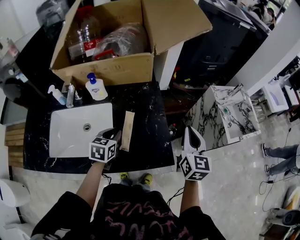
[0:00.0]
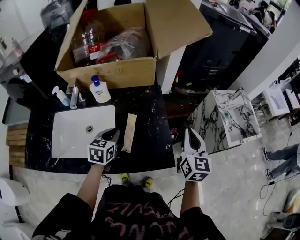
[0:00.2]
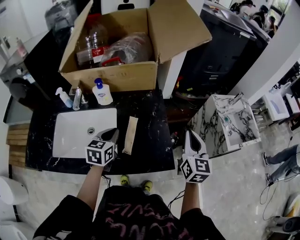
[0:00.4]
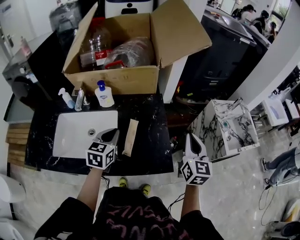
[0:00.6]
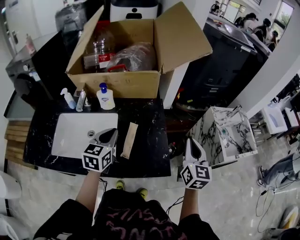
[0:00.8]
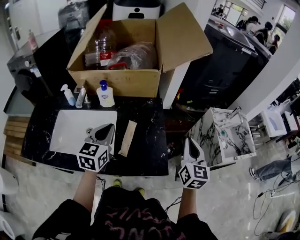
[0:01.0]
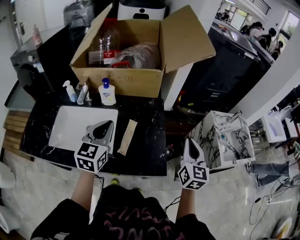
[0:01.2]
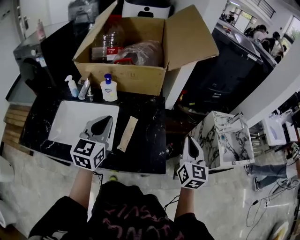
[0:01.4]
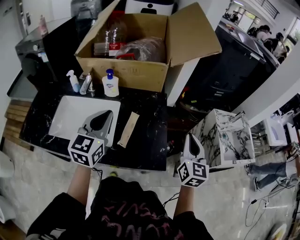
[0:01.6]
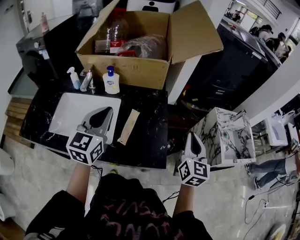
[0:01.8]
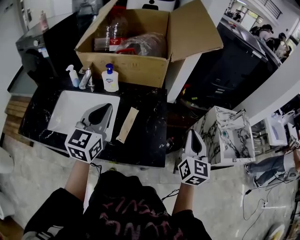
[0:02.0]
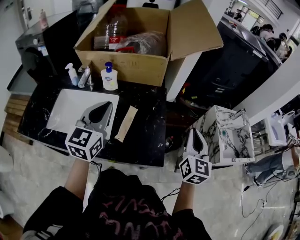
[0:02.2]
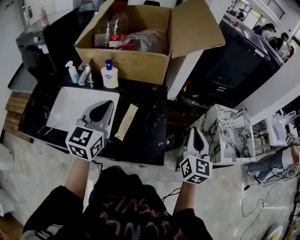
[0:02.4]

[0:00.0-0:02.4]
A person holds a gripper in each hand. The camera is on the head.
0:00.0 to 0:01.2: The left gripper moves upward, some 15 cm, and rotates some 30 degrees.
0:01.2 to 0:02.4: The grippers make only small movements.

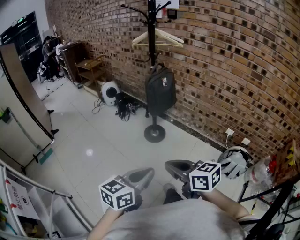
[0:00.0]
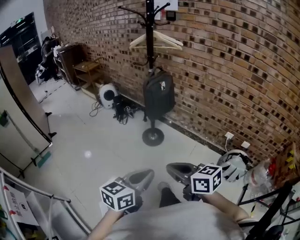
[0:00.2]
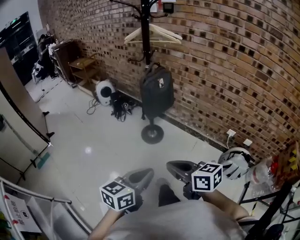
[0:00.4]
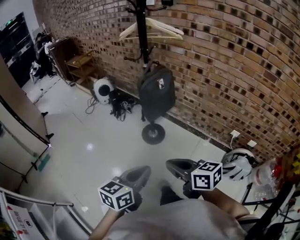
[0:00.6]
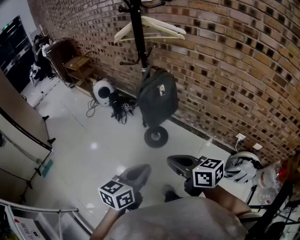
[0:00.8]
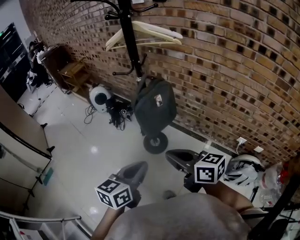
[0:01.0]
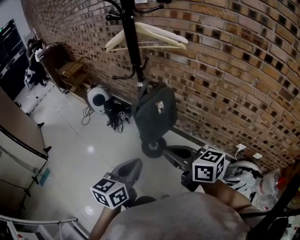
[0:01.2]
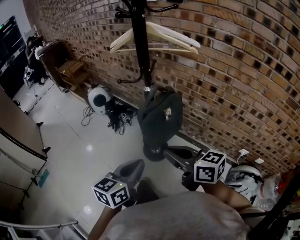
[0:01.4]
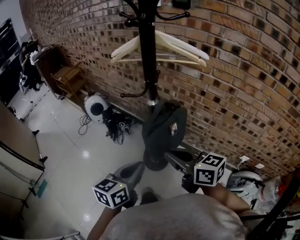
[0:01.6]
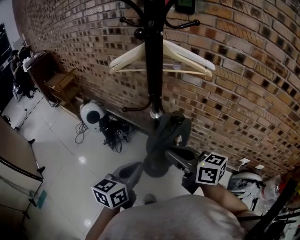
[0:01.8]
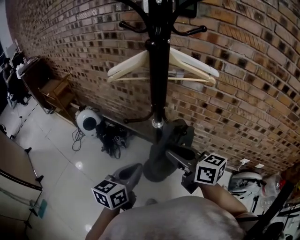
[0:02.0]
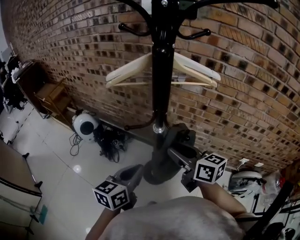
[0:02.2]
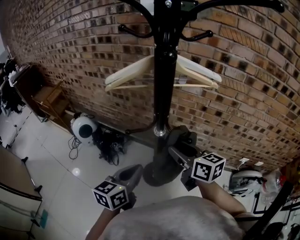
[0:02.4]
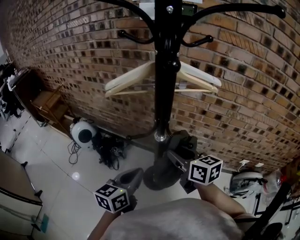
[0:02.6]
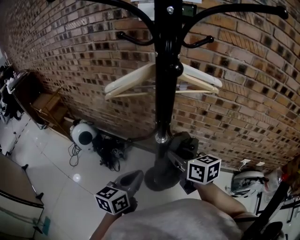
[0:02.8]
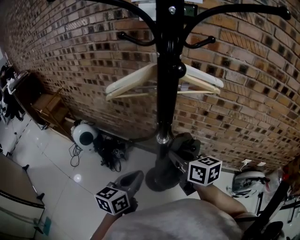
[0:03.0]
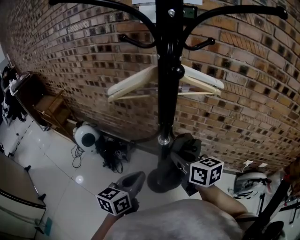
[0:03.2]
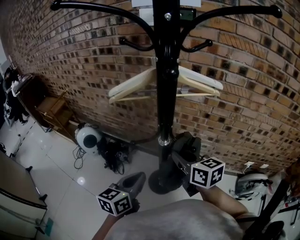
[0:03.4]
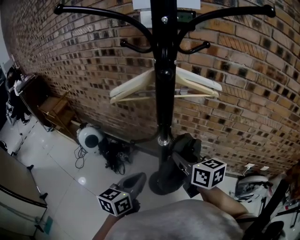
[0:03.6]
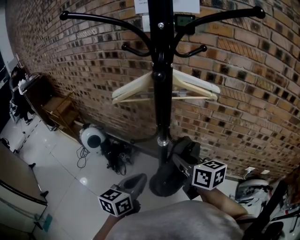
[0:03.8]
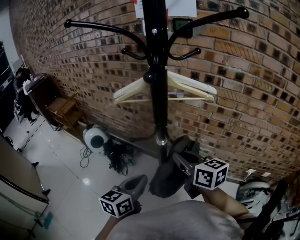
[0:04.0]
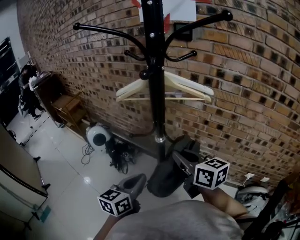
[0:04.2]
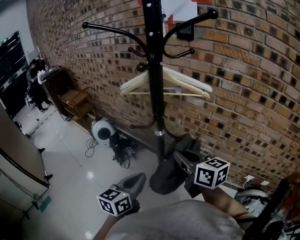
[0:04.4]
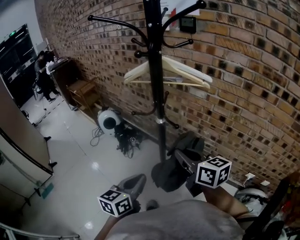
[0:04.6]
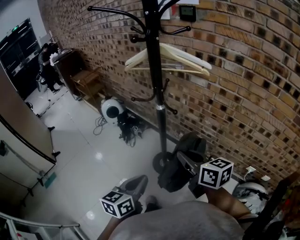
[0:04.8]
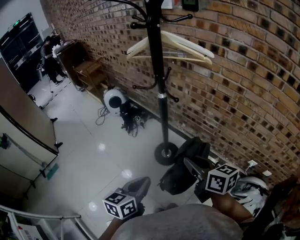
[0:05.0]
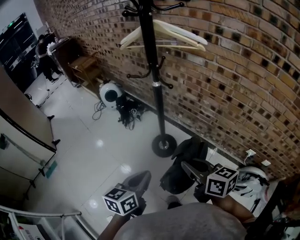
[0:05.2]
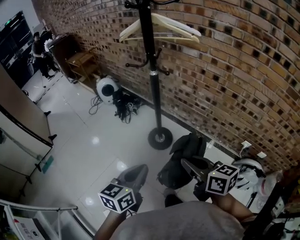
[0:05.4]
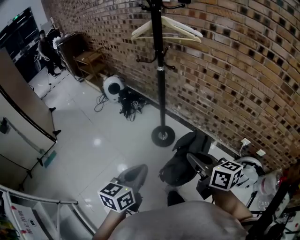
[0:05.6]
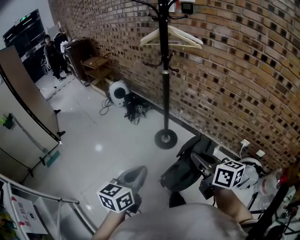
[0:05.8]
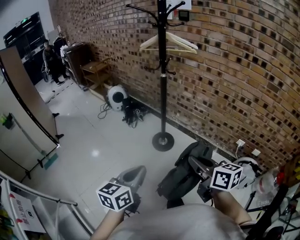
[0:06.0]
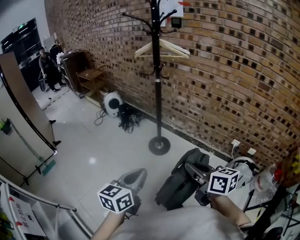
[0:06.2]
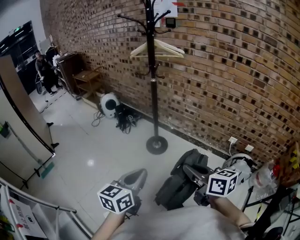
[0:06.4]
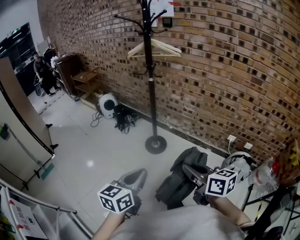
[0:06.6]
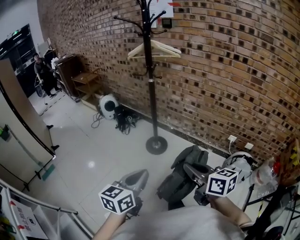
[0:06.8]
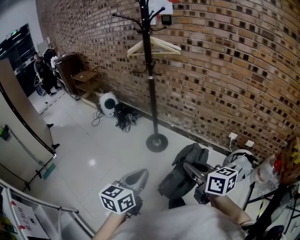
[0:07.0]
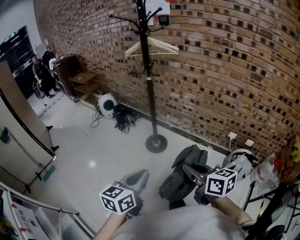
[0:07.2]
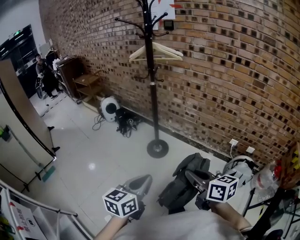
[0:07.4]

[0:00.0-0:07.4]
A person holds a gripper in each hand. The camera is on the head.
0:00.0 to 0:01.4: The pair of grippers is taken forward, about 40 cm.
0:01.4 to 0:03.0: The right gripper is displaced forward by approximately 25 cm, rotates some 30 degrees, and opens, then closes once more. Meanwhile the left gripper travels forward and to the left by about 25 cm.
0:03.0 to 0:04.4: The left gripper moves backward and to the right, approximately 10 cm. Meanwhile the right gripper goes approximately 15 cm backward, upward and to the right.
0:04.4 to 0:06.0: Both grippers are carried backward, approximately 40 cm.
0:06.0 to 0:07.4: The right gripper shifts roughly 5 cm backward. The left gripper changes place by approximately 5 cm.

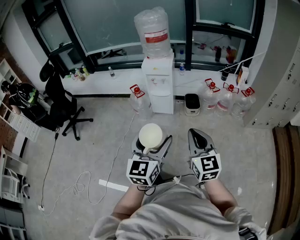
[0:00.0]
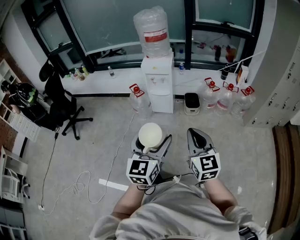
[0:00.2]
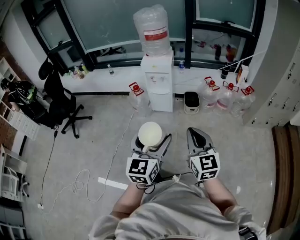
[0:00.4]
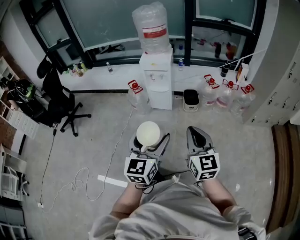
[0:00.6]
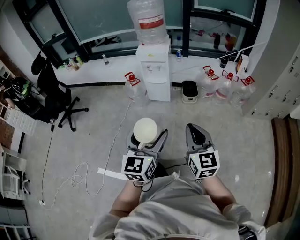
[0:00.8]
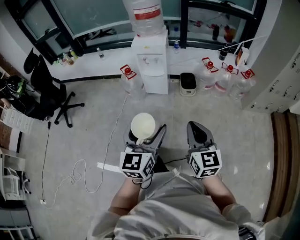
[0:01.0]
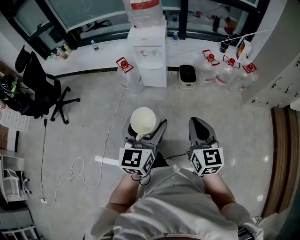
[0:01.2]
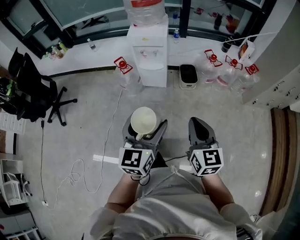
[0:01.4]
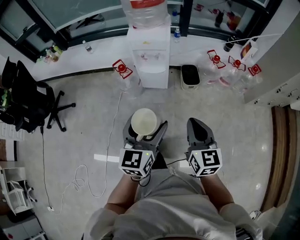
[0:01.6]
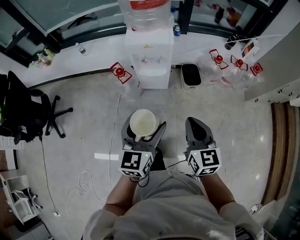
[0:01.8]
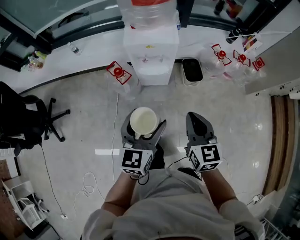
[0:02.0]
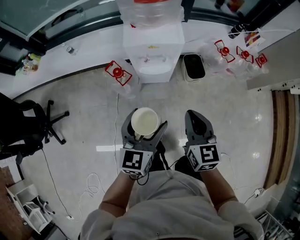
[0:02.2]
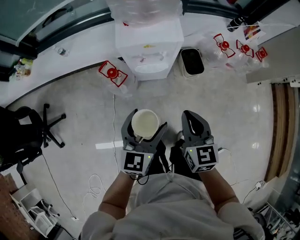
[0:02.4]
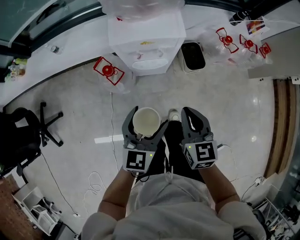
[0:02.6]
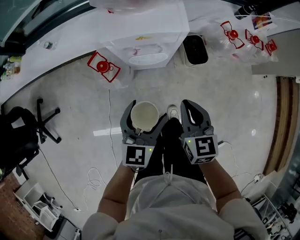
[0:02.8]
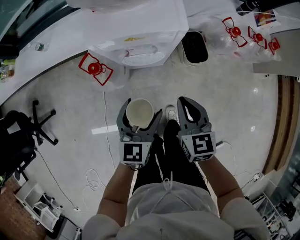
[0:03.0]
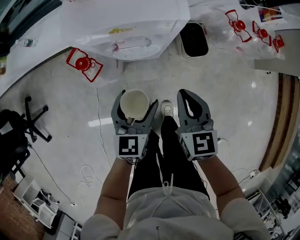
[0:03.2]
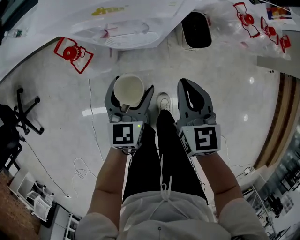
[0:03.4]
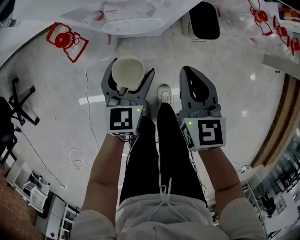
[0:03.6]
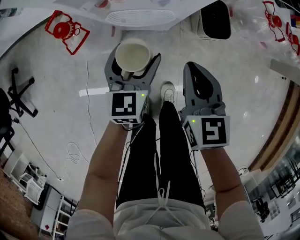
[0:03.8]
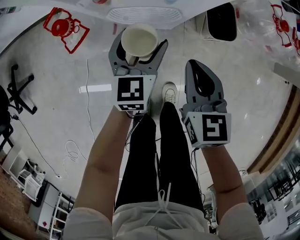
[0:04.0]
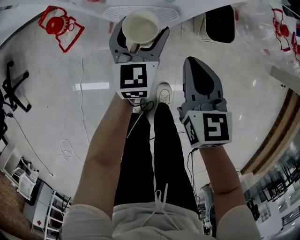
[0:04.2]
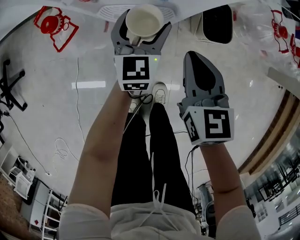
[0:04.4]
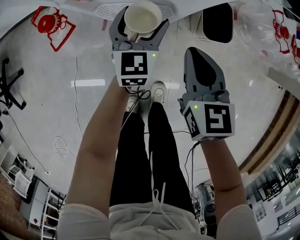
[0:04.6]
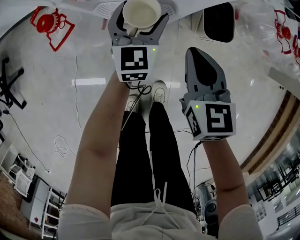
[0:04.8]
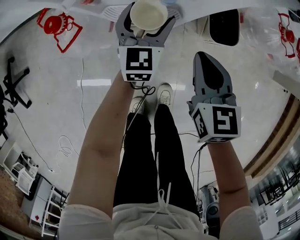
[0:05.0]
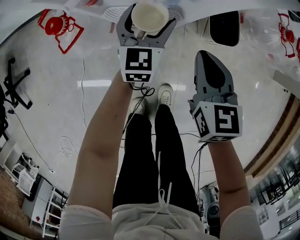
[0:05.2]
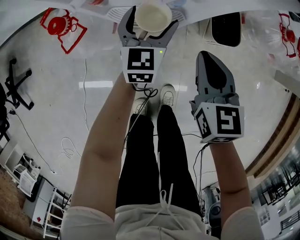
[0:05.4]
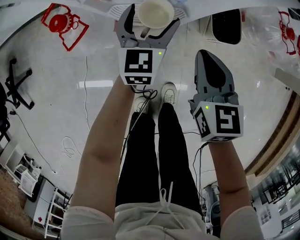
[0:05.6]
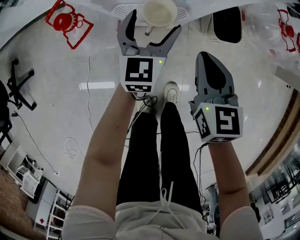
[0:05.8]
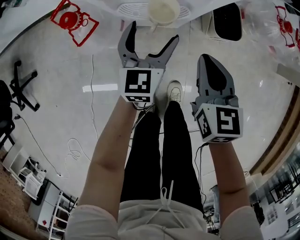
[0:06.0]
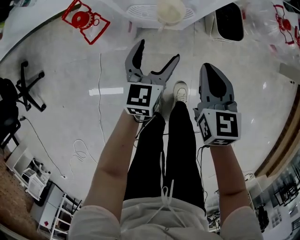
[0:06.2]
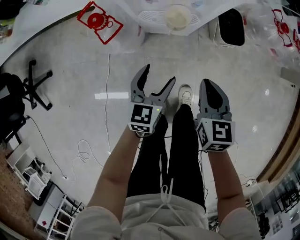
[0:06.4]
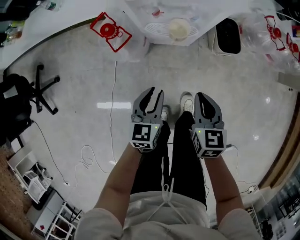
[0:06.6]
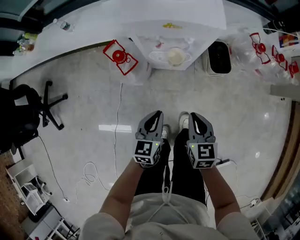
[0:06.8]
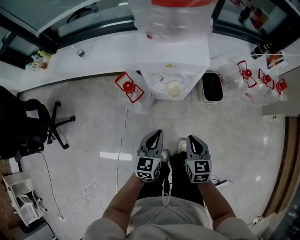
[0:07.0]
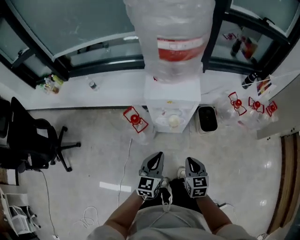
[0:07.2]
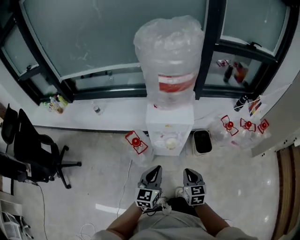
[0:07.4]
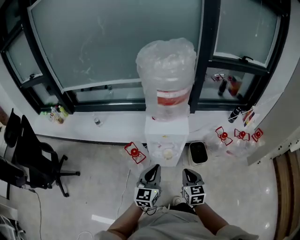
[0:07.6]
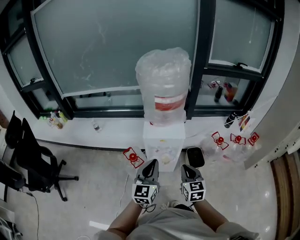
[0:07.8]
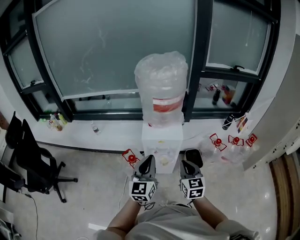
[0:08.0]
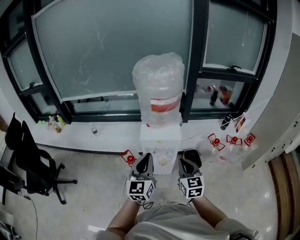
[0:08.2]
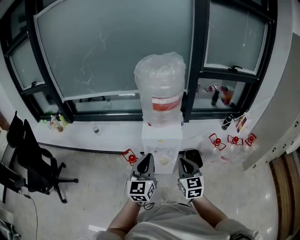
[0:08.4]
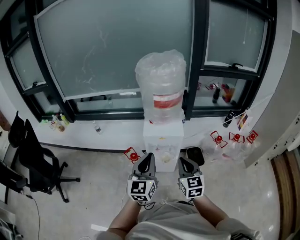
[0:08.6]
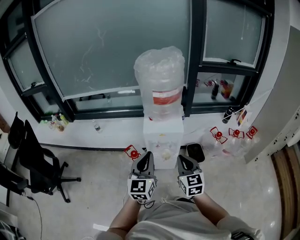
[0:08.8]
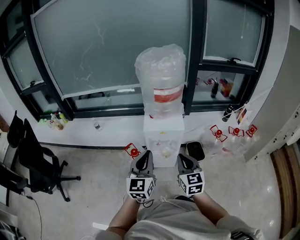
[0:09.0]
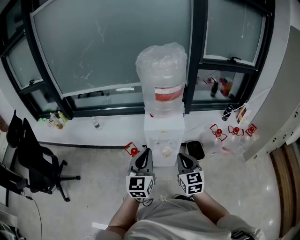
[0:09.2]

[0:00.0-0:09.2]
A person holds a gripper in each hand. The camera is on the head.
0:00.0 to 0:01.6: The right gripper shifts approximately 20 cm forward and downward. The left gripper travels forward by approximately 25 cm.
0:01.6 to 0:03.0: The left gripper shifts roughly 40 cm forward and downward; the right gripper travels forward, downward and to the left by approximately 40 cm.
0:03.0 to 0:04.6: Both grippers move downward and forward, approximately 25 cm.
0:04.6 to 0:06.2: The left gripper moves backward, some 10 cm, while the right gripper heads backward, covering approximately 5 cm.
0:06.2 to 0:07.6: The grippers both shift upward by some 35 cm. The left gripper turns by roughly 20 degrees, and closes.
0:07.6 to 0:09.2: The two grippers go about 10 cm upward.

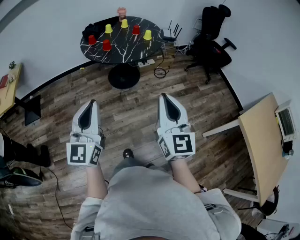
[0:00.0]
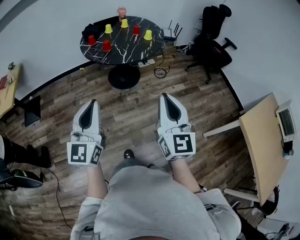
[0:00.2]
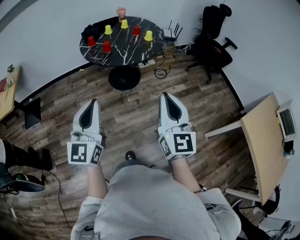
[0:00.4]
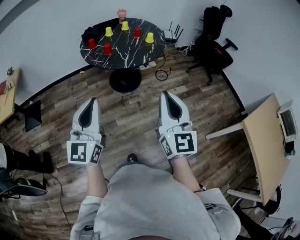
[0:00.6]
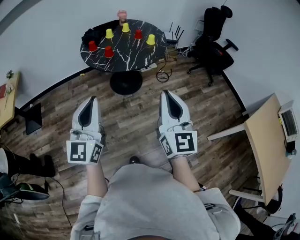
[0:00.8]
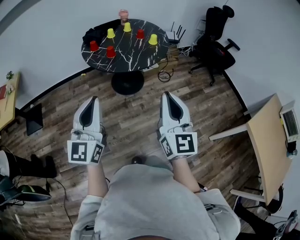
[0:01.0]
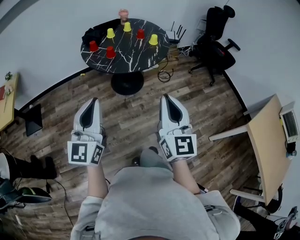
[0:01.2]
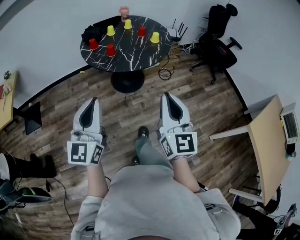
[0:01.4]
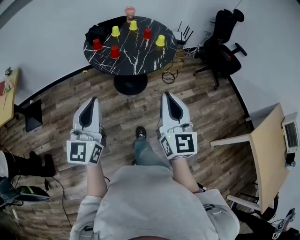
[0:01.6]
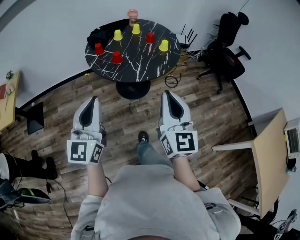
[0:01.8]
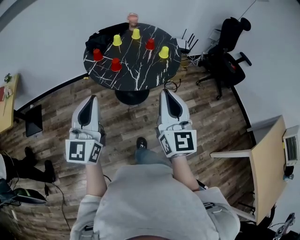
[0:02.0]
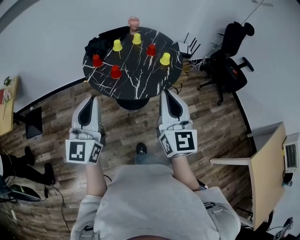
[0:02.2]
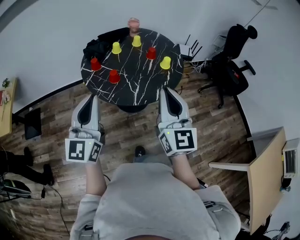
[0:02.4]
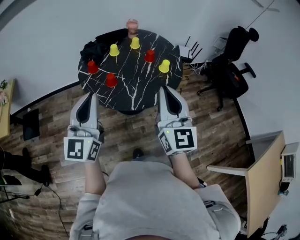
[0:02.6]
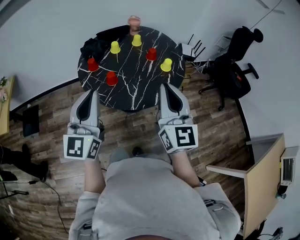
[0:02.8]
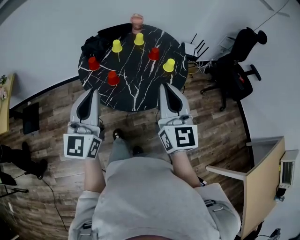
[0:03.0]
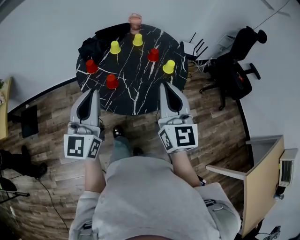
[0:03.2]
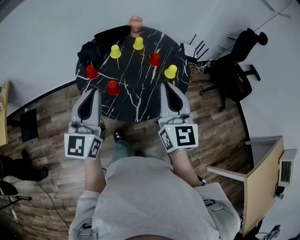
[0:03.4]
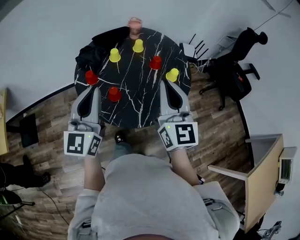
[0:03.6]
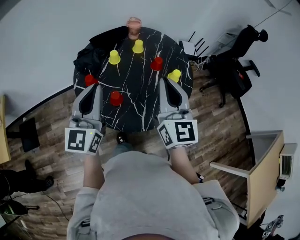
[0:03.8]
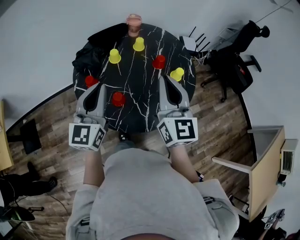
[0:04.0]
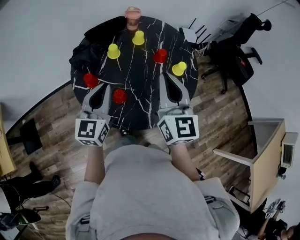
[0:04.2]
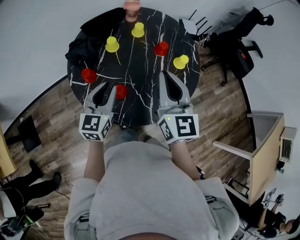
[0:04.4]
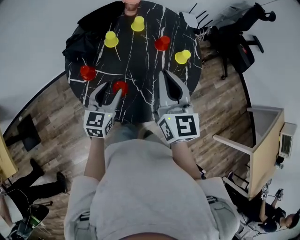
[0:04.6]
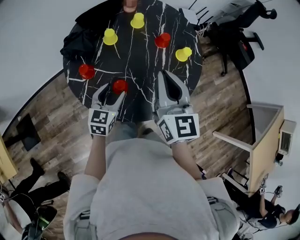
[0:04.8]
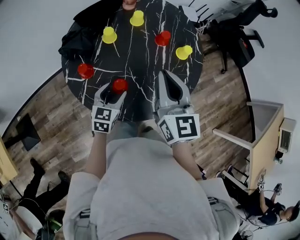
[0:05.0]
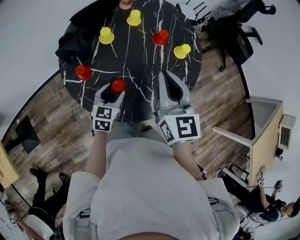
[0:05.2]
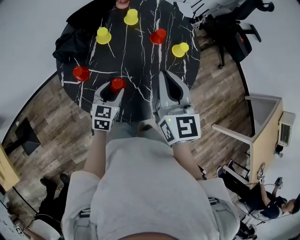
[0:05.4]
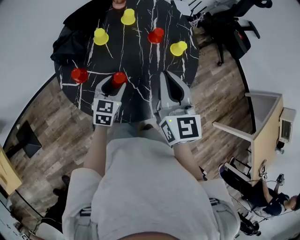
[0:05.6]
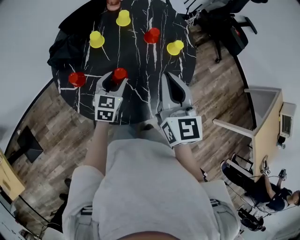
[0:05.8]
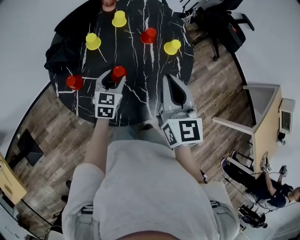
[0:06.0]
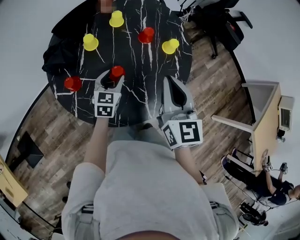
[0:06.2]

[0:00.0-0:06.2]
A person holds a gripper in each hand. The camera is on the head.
0:00.0 to 0:01.6: Both grippers travel together forward and to the left, some 20 cm.
0:01.6 to 0:03.2: Both grippers move forward, some 35 cm.
0:03.2 to 0:04.6: The left gripper travels downward and forward by approximately 30 cm, tilts its fingers roughly 30 degrees downward, and opens its fingers; the right gripper travels forward, to the left and downward by about 20 cm.
0:04.6 to 0:06.2: The left gripper goes roughly 15 cm downward, forward and to the right, while the right gripper shifts approximately 5 cm to the right.
